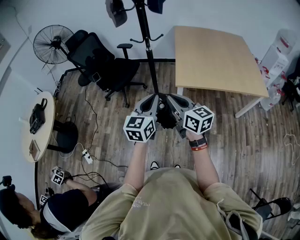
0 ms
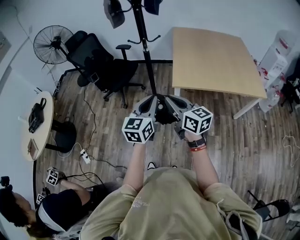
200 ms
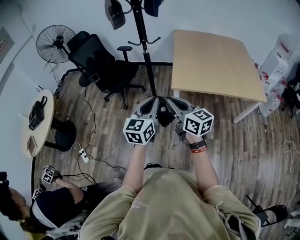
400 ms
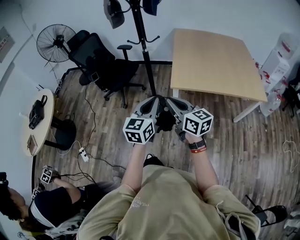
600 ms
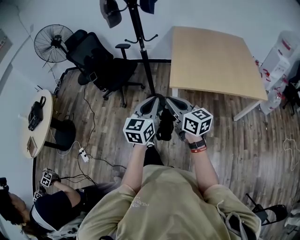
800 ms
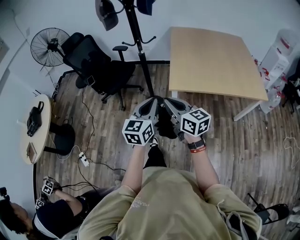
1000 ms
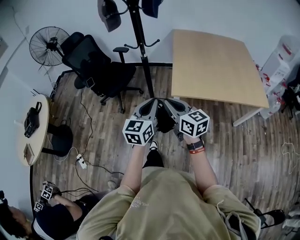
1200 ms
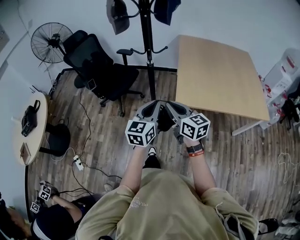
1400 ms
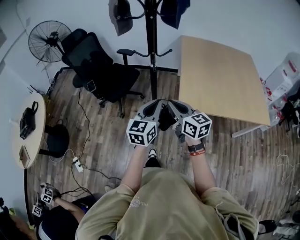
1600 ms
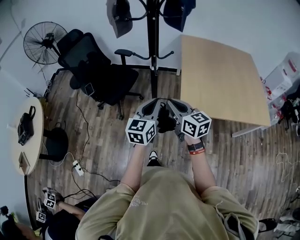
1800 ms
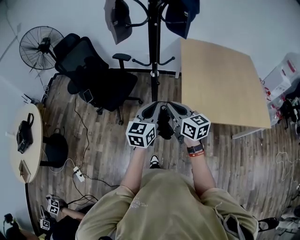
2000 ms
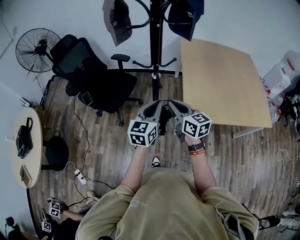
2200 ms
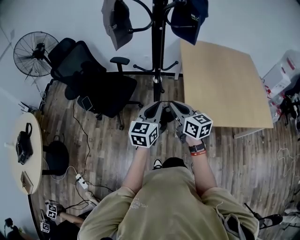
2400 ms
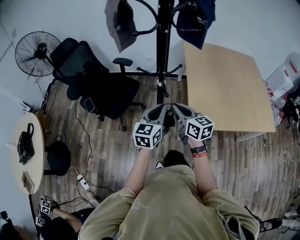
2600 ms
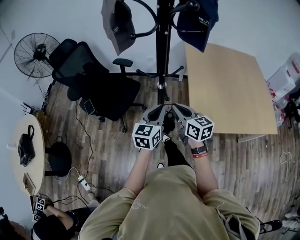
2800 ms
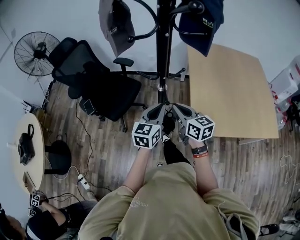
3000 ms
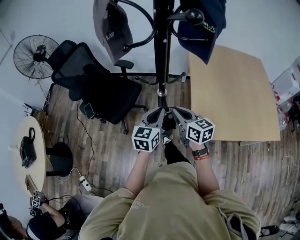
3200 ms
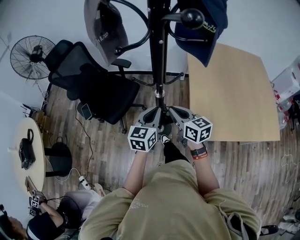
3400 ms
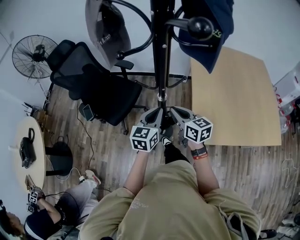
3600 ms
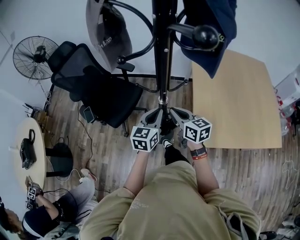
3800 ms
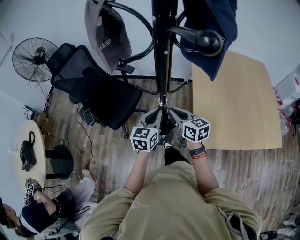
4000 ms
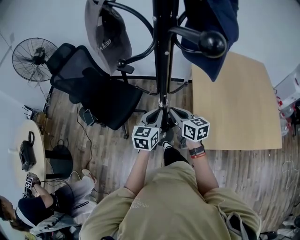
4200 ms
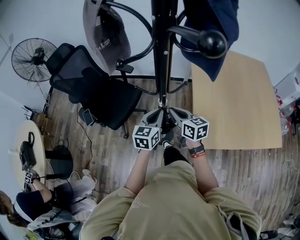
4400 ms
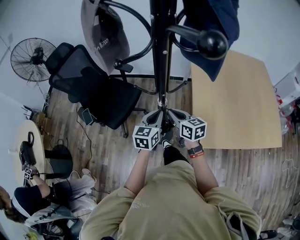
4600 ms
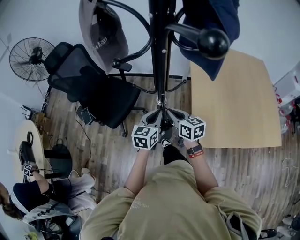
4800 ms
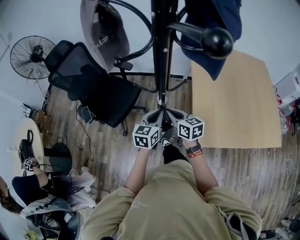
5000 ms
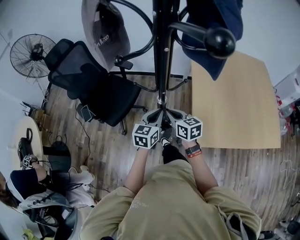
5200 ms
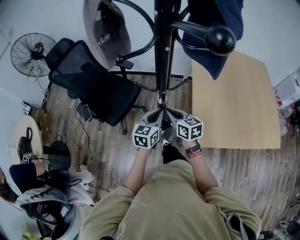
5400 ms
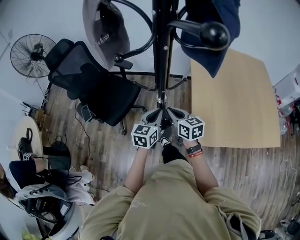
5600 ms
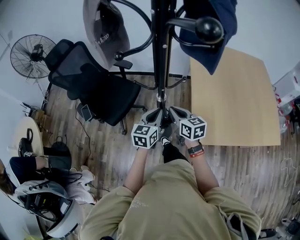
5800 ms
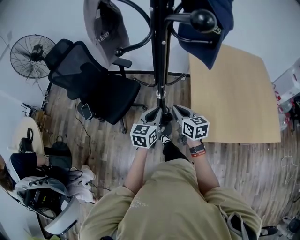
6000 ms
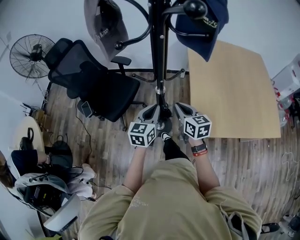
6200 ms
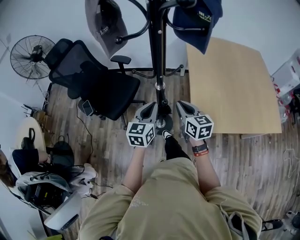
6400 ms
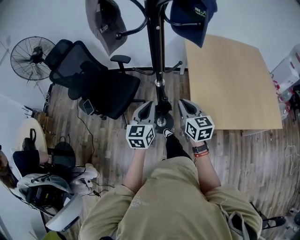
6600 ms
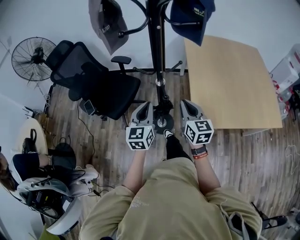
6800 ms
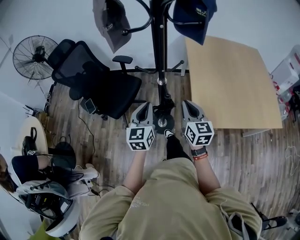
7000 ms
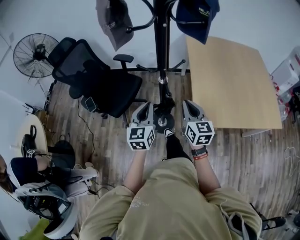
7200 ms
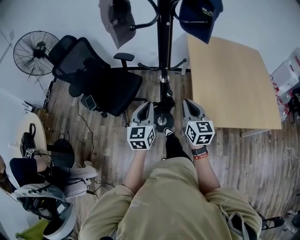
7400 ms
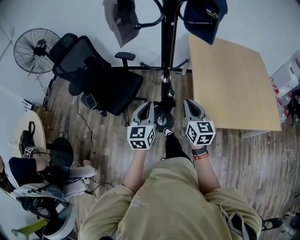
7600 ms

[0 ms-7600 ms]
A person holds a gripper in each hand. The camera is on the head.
0 ms to 1600 ms: The grippers both shift forward by roughly 20 cm.
1600 ms to 3000 ms: Both grippers travel together forward, some 25 cm.
3000 ms to 4600 ms: Both grippers travel together forward and downward, approximately 15 cm.
4600 ms to 6000 ms: The grippers stay close to where they were, moving slightly.
6000 ms to 7600 ms: The left gripper moves backward and to the left, some 15 cm. The right gripper shifts about 15 cm backward and upward, and changes its angle by about 20 degrees.

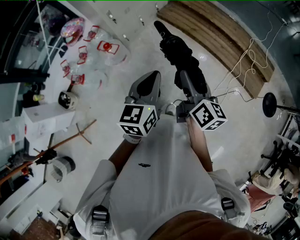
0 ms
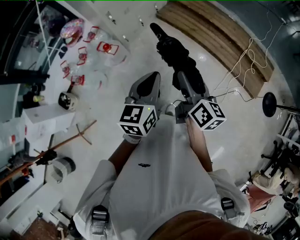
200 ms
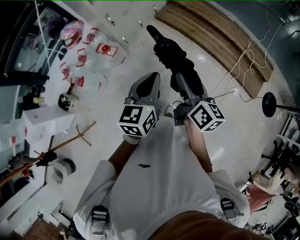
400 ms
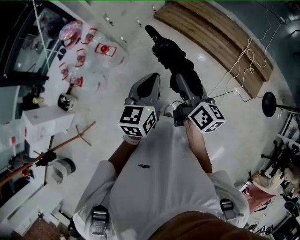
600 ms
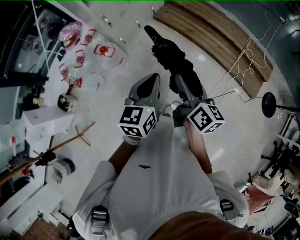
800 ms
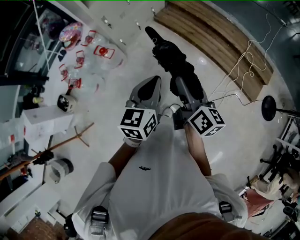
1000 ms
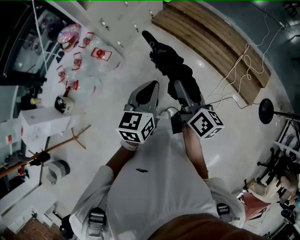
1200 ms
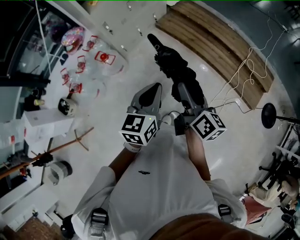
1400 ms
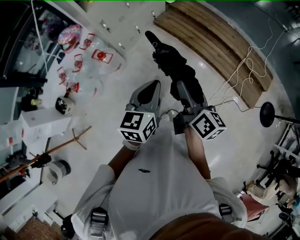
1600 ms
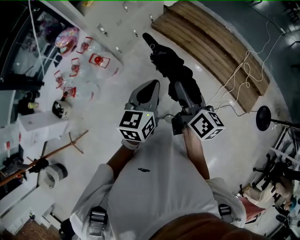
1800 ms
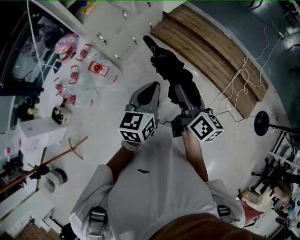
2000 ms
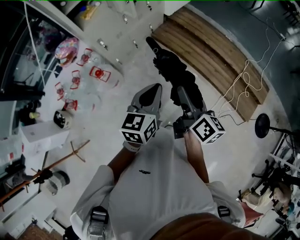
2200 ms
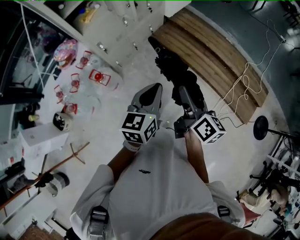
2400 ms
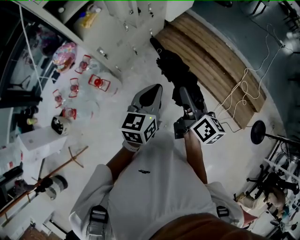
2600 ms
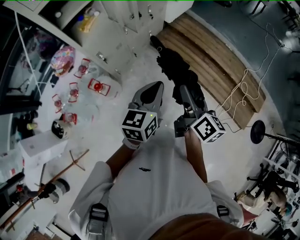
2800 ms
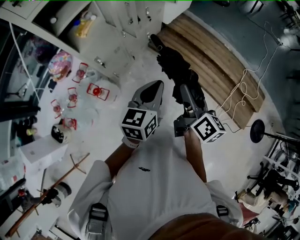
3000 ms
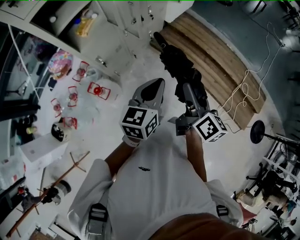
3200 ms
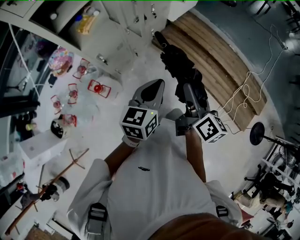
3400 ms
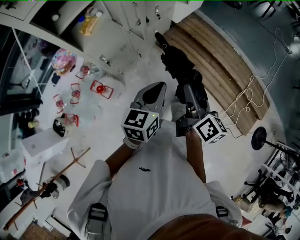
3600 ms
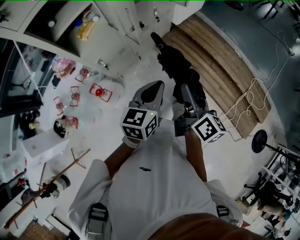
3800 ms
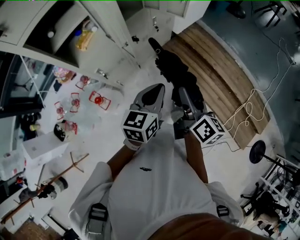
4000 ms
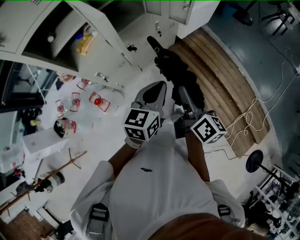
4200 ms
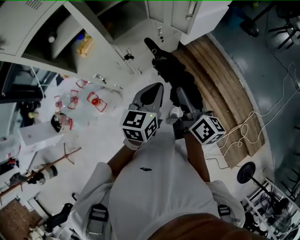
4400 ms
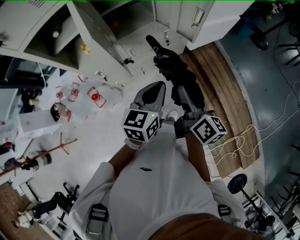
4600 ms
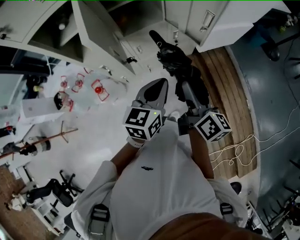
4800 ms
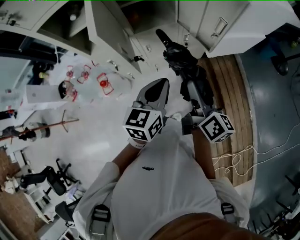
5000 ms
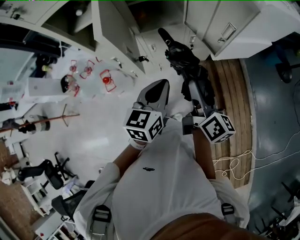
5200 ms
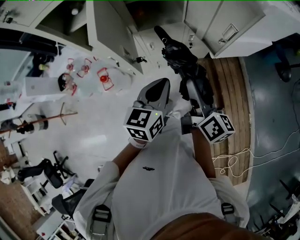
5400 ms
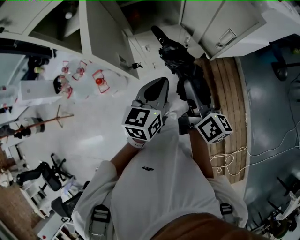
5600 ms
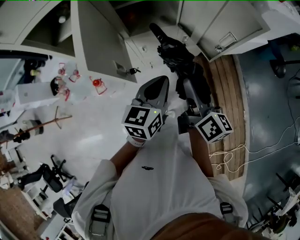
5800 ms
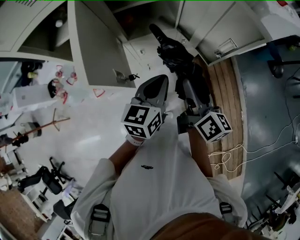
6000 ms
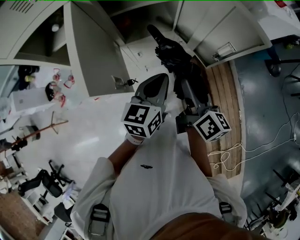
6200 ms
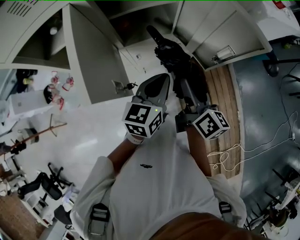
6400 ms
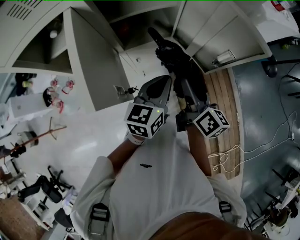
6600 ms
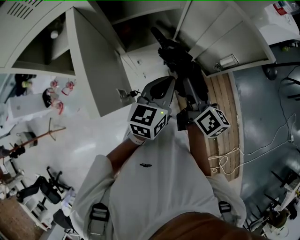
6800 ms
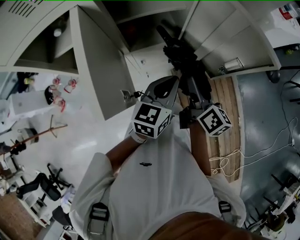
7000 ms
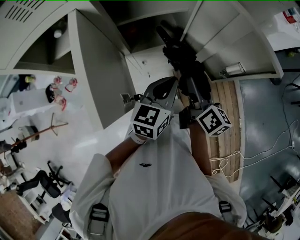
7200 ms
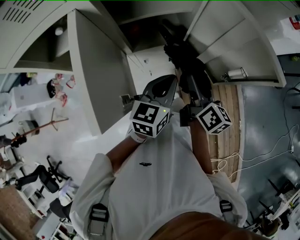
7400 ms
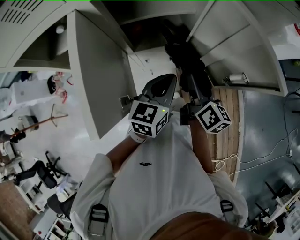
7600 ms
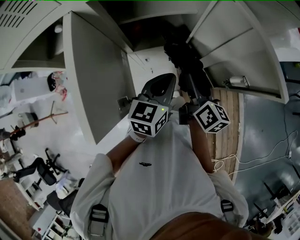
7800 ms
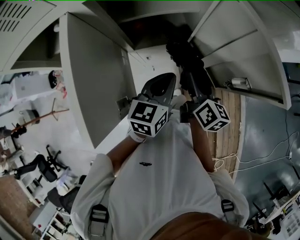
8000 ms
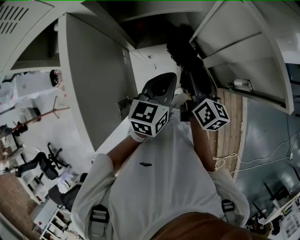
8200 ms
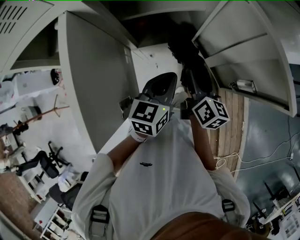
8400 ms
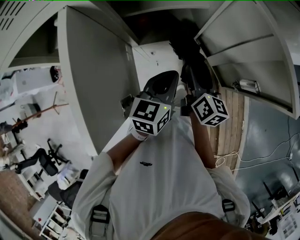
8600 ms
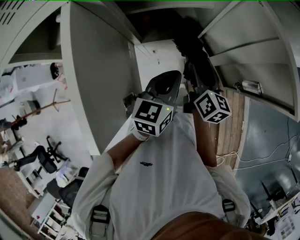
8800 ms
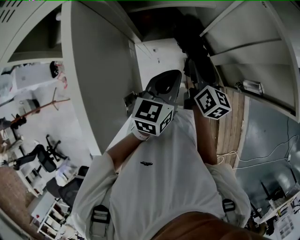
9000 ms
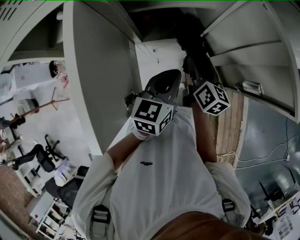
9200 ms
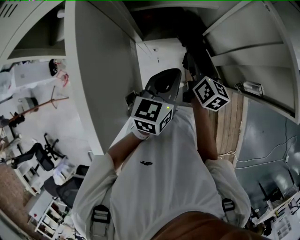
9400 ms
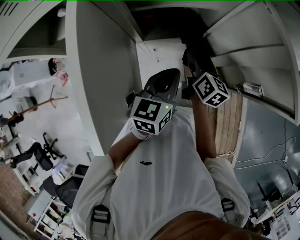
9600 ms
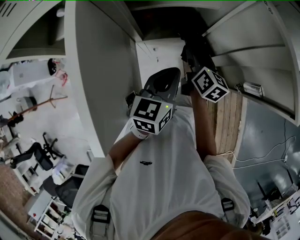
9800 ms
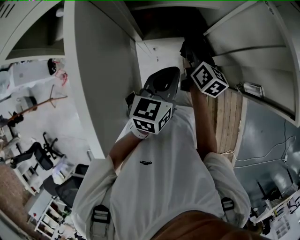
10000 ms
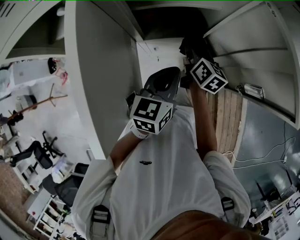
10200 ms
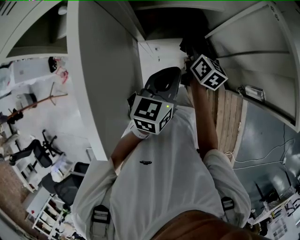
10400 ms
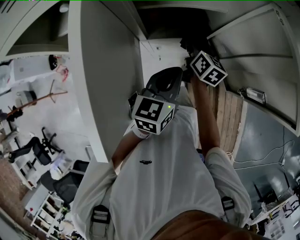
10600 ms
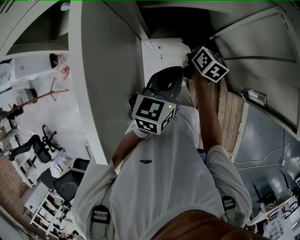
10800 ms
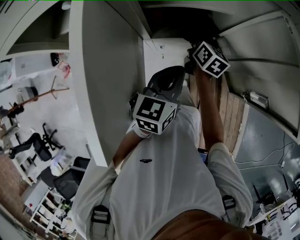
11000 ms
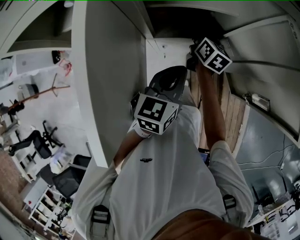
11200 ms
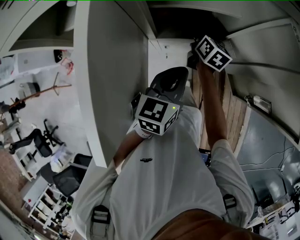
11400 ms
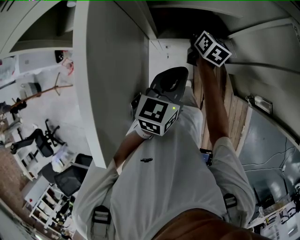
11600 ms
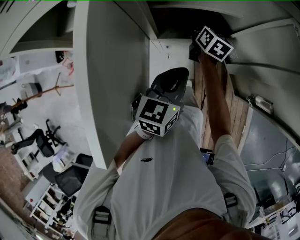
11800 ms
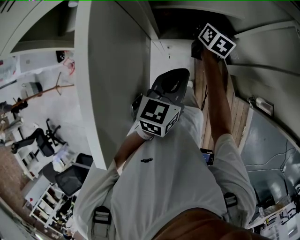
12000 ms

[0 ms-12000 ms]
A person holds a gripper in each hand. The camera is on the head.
0 ms to 1600 ms: Both grippers move to the right, roughly 5 cm.
1600 ms to 3000 ms: Both grippers move forward, roughly 30 cm.
3000 ms to 4400 ms: Both grippers move forward, about 25 cm. The right gripper rotates some 20 degrees.
4400 ms to 6000 ms: Both grippers move forward, approximately 20 cm.
6000 ms to 7600 ms: The two grippers go some 10 cm forward.
7600 ms to 9000 ms: The right gripper heads downward, covering approximately 5 cm.
9000 ms to 10400 ms: The right gripper heads forward, covering roughly 10 cm.
10400 ms to 12000 ms: The right gripper travels forward by some 10 cm.

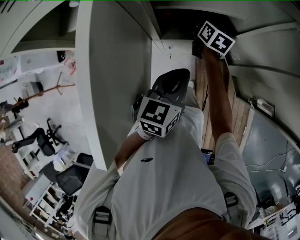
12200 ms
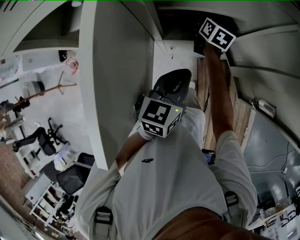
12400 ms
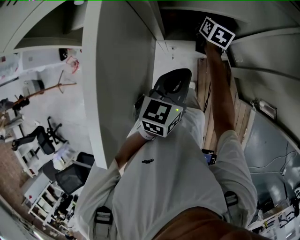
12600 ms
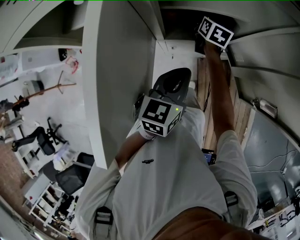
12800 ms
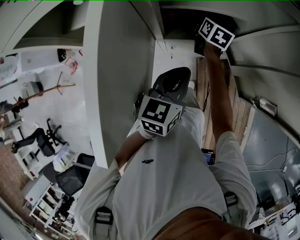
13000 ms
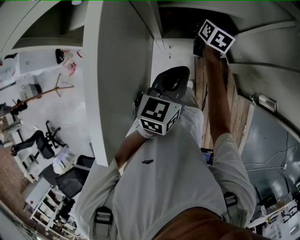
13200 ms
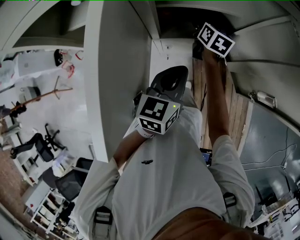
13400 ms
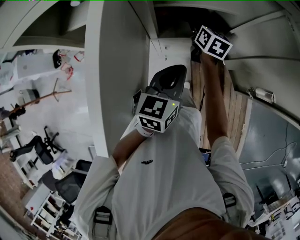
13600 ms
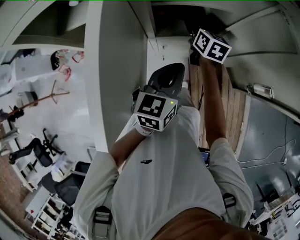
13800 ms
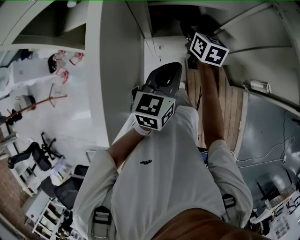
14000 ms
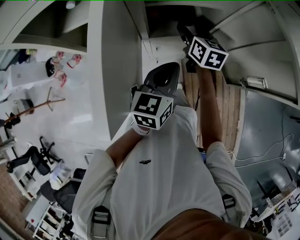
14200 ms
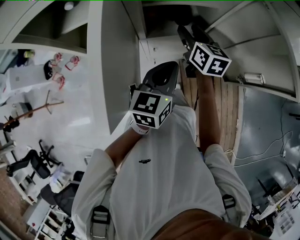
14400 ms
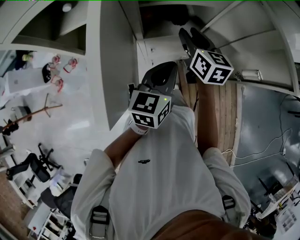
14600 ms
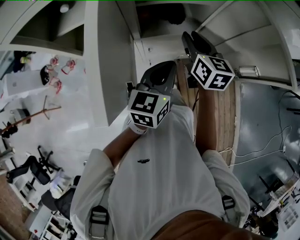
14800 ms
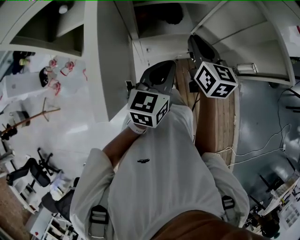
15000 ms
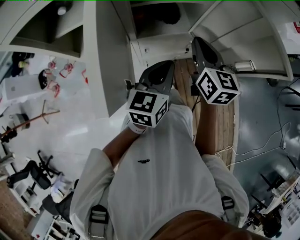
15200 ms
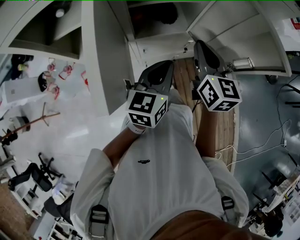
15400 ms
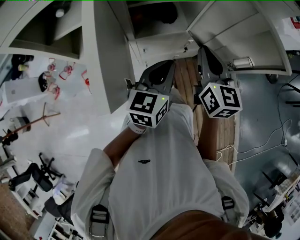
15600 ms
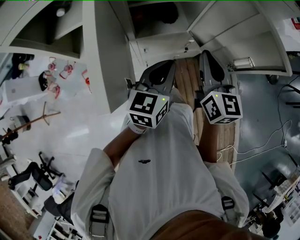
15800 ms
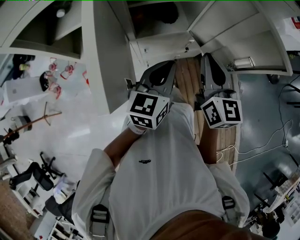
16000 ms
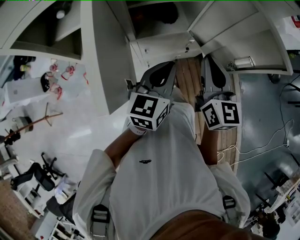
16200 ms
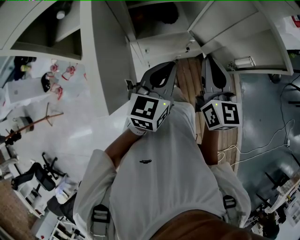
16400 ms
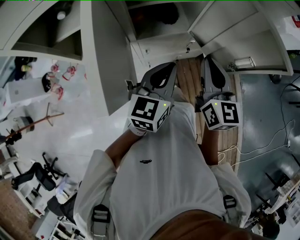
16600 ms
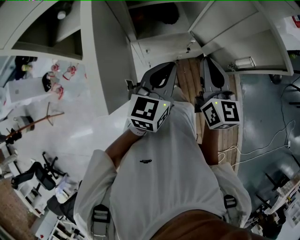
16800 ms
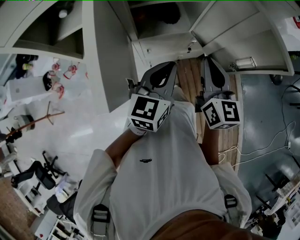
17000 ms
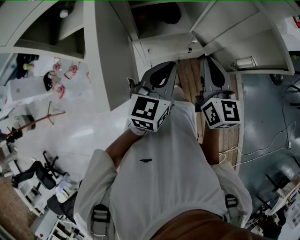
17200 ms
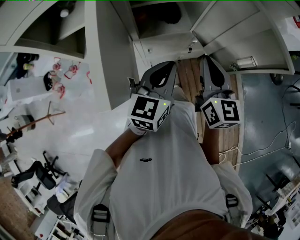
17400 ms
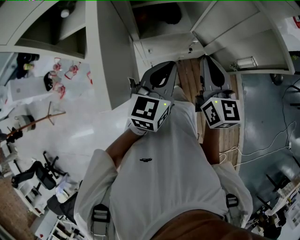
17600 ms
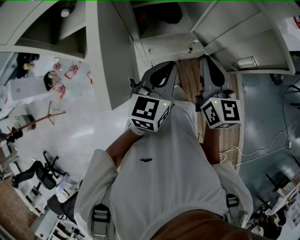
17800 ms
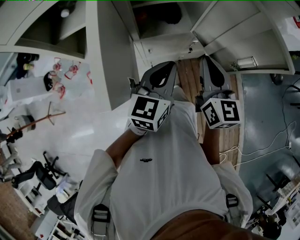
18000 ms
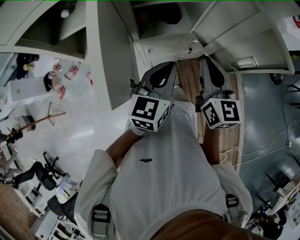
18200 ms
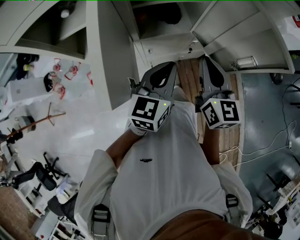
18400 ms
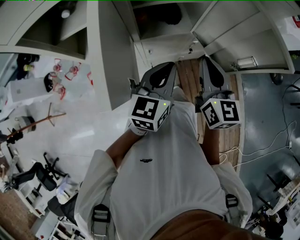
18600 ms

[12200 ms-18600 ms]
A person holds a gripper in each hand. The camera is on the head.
12200 ms to 13800 ms: The right gripper goes approximately 5 cm backward.
13800 ms to 15400 ms: The right gripper is displaced backward and upward by some 20 cm, and closes its fingers.
15400 ms to 17000 ms: The right gripper shifts by approximately 5 cm.
17000 ms to 18600 ms: Neither gripper changes place.
